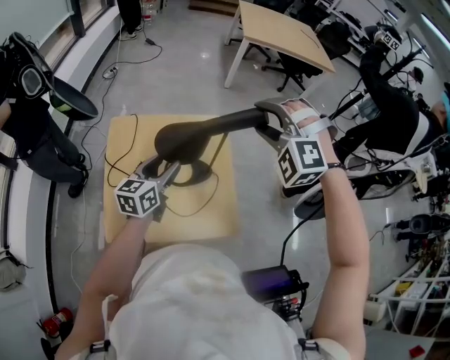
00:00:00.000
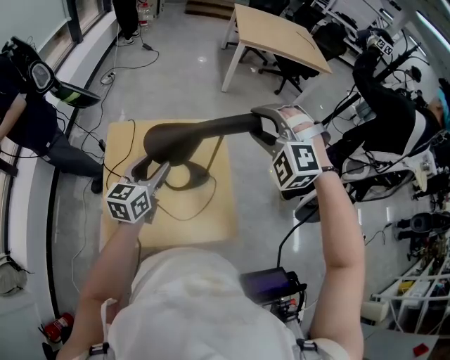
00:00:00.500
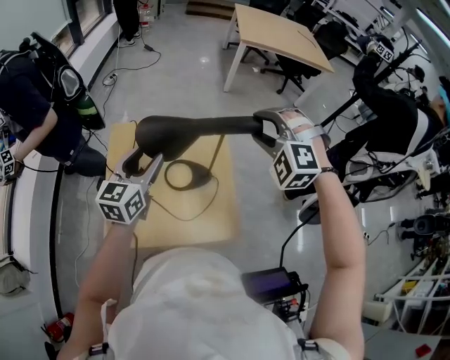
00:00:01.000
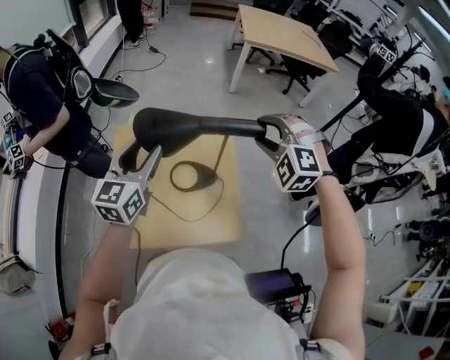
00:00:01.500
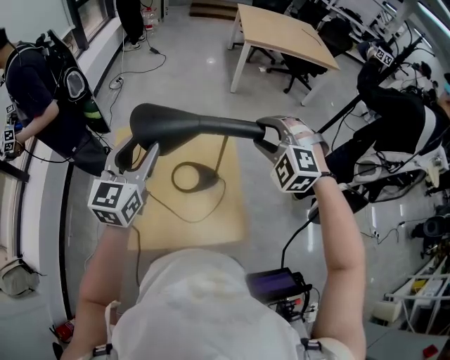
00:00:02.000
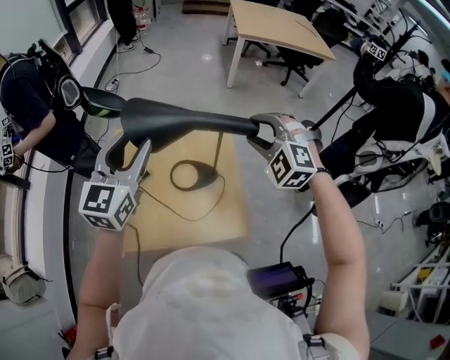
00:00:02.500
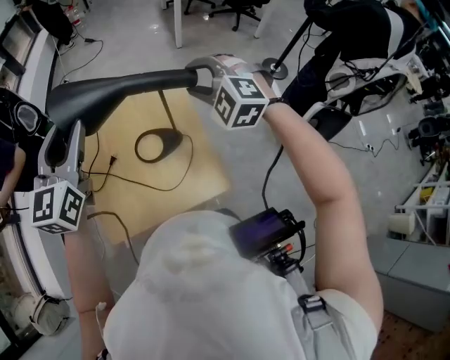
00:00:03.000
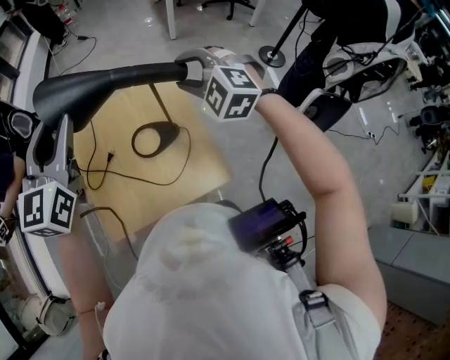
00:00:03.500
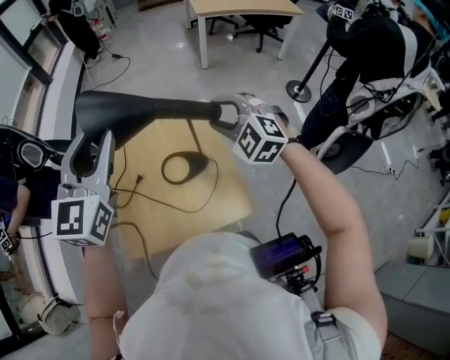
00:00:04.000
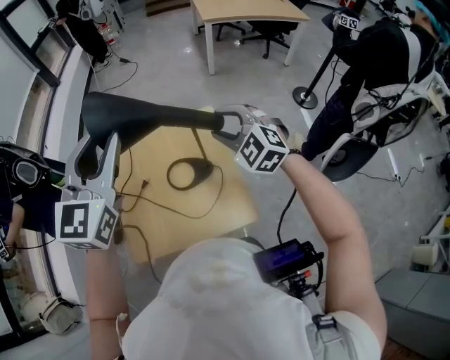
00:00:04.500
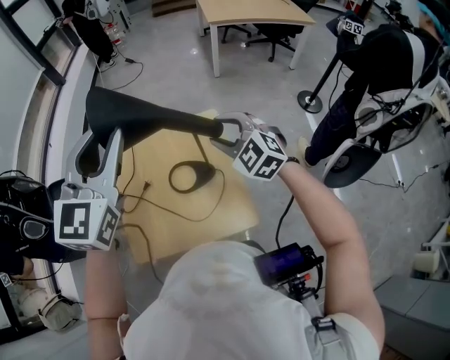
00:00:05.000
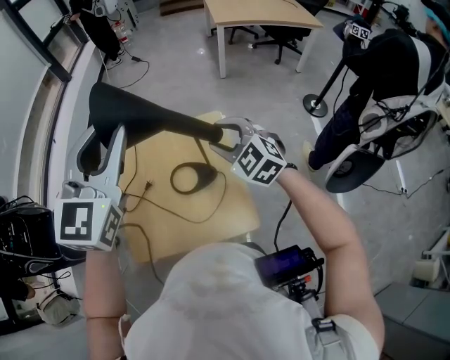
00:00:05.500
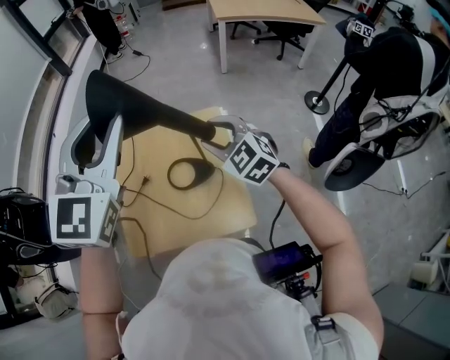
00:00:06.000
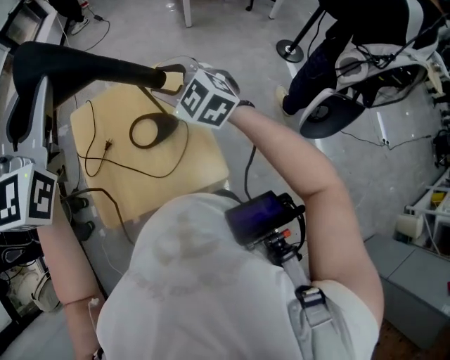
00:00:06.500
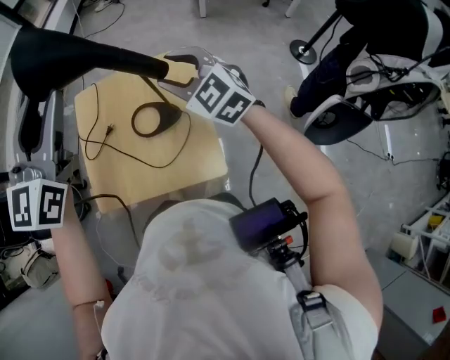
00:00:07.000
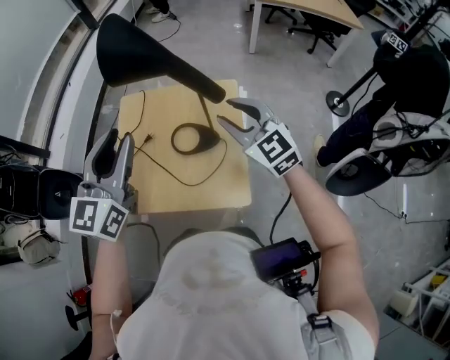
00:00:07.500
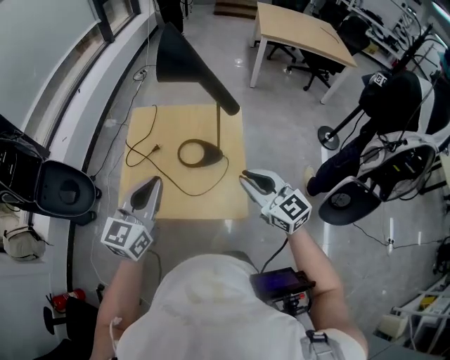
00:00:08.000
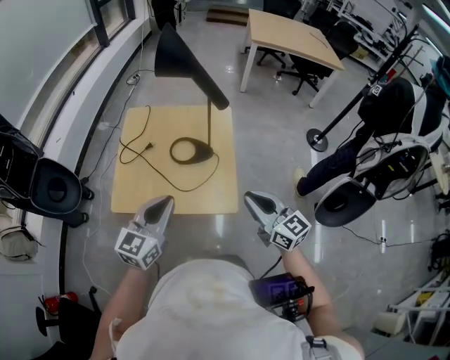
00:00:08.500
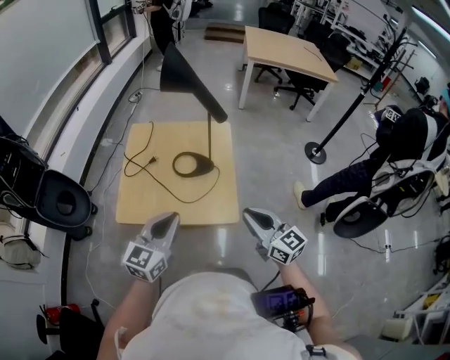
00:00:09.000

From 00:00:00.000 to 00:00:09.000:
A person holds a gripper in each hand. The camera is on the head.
From 00:00:00.000 to 00:00:02.000: The left gripper shifts some 15 cm upward, and swivels some 30 degrees; the right gripper travels downward by approximately 5 cm.
From 00:00:02.000 to 00:00:04.500: The right gripper turns by about 30 degrees. The left gripper travels upward and to the right by approximately 10 cm.
From 00:00:04.500 to 00:00:07.000: The right gripper changes its angle by about 20 degrees, while the left gripper shifts by some 5 cm.
From 00:00:07.000 to 00:00:09.000: The right gripper is displaced backward by some 30 cm, swivels about 40 degrees, and closes, while the left gripper is displaced backward and downward by approximately 35 cm, turns by roughly 20 degrees, and closes up.

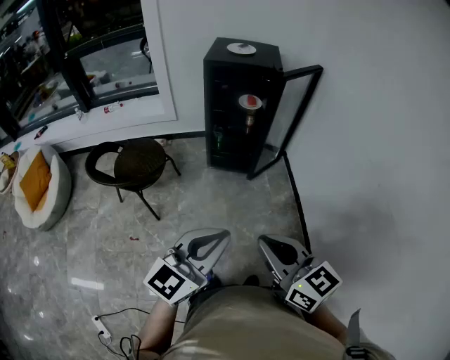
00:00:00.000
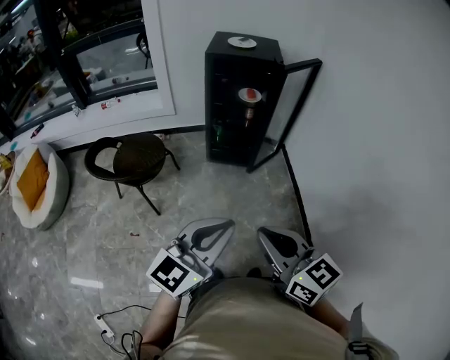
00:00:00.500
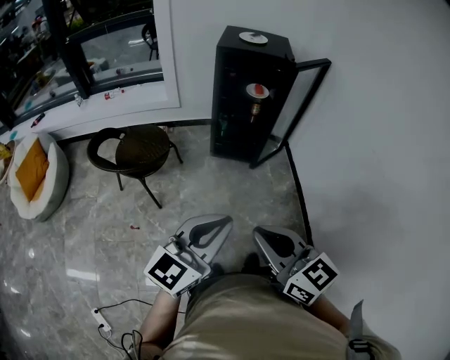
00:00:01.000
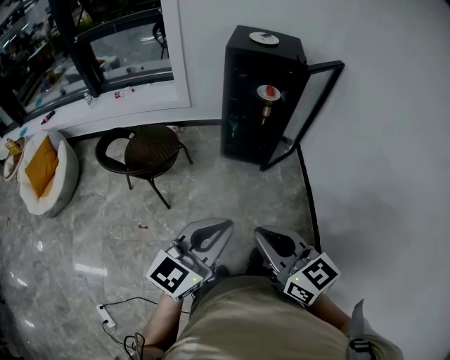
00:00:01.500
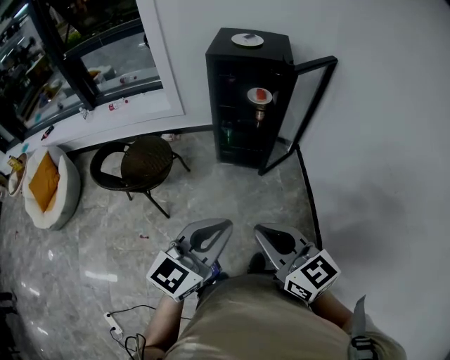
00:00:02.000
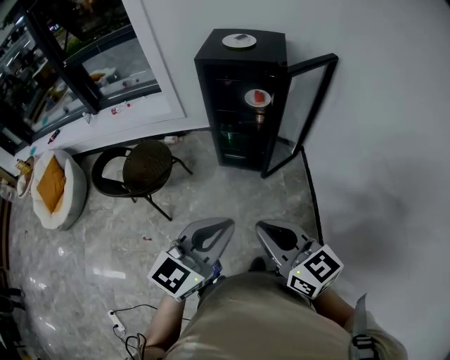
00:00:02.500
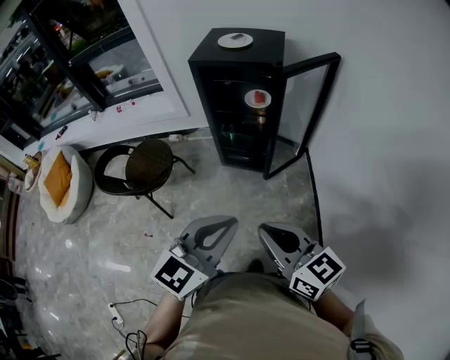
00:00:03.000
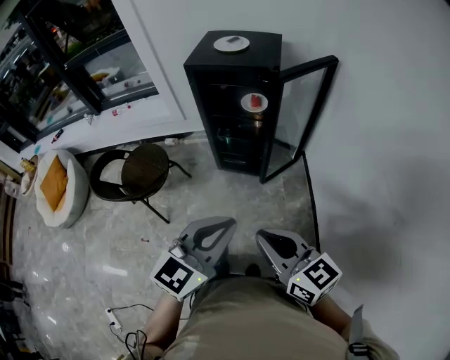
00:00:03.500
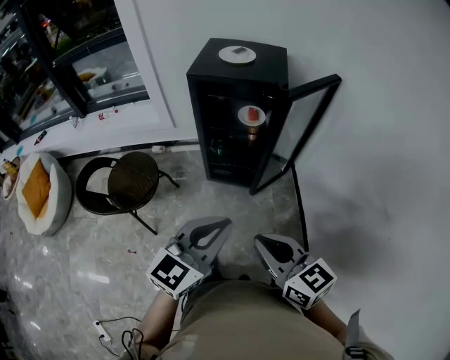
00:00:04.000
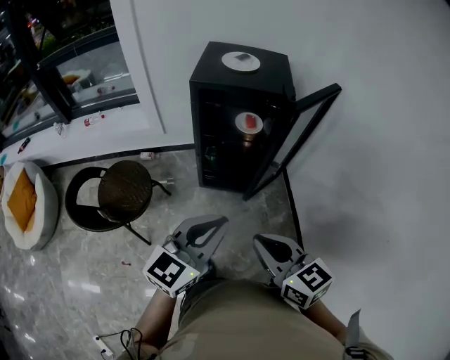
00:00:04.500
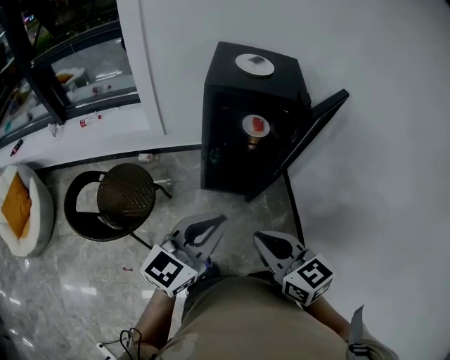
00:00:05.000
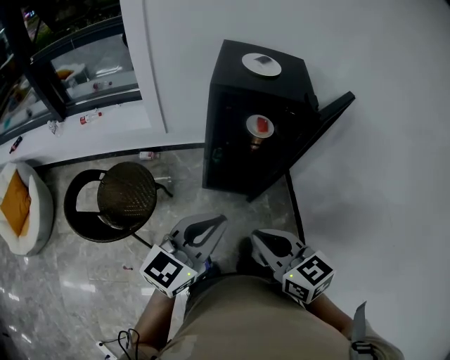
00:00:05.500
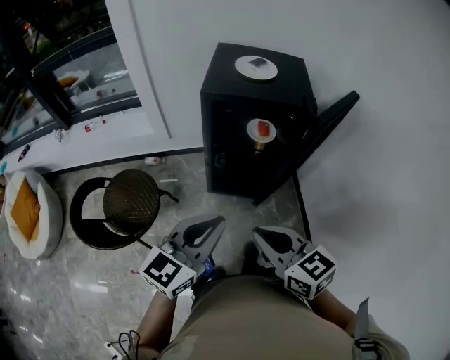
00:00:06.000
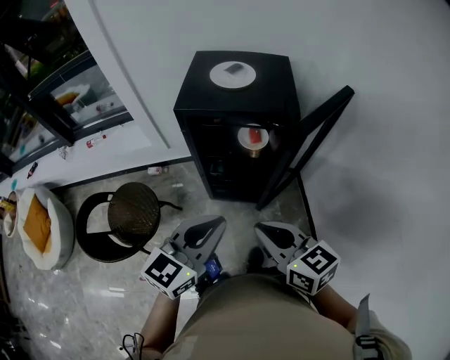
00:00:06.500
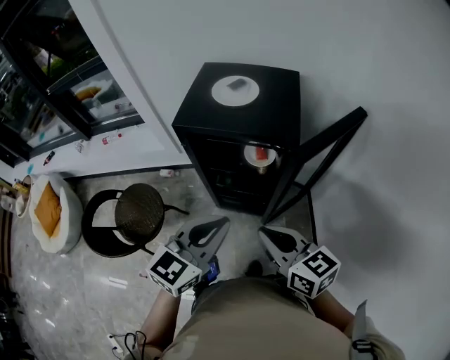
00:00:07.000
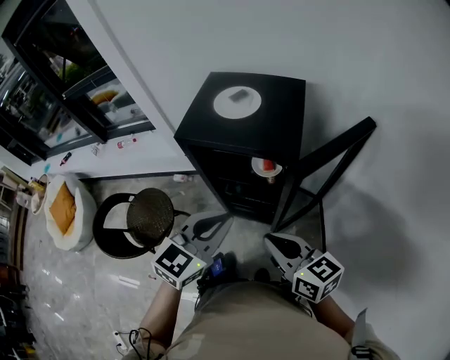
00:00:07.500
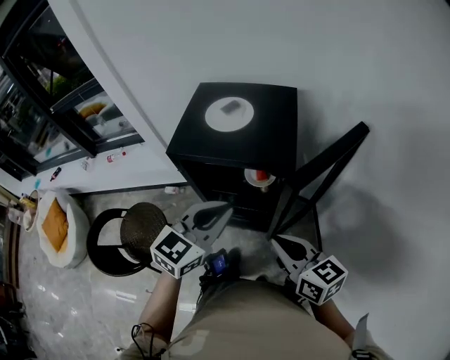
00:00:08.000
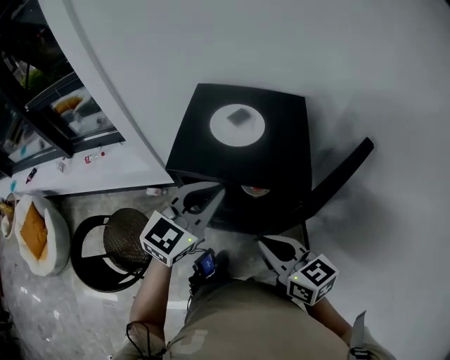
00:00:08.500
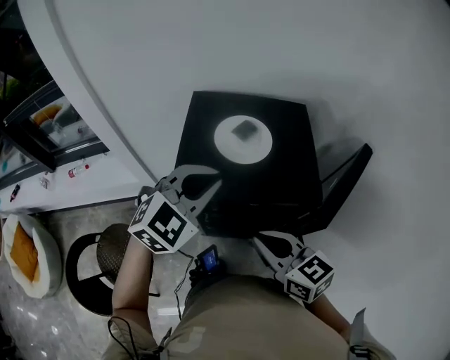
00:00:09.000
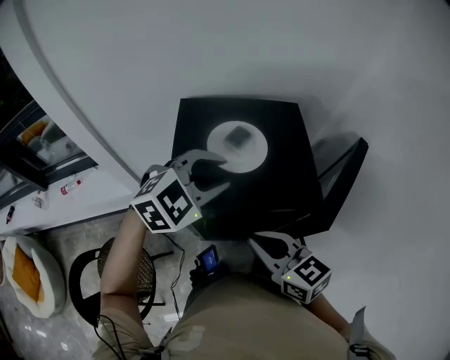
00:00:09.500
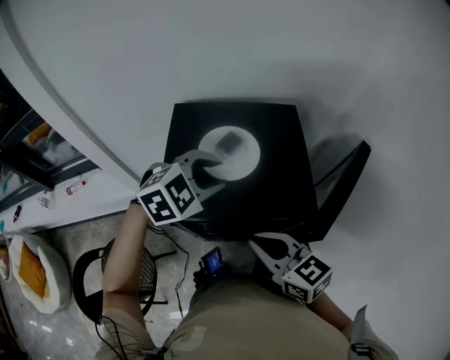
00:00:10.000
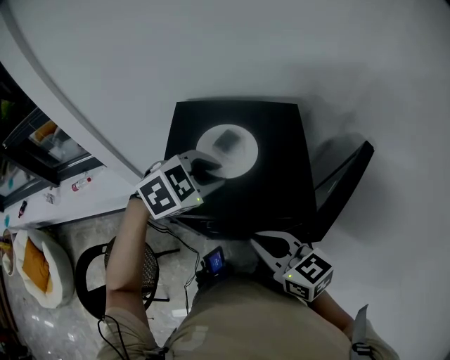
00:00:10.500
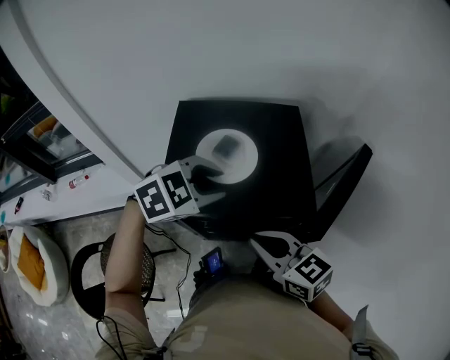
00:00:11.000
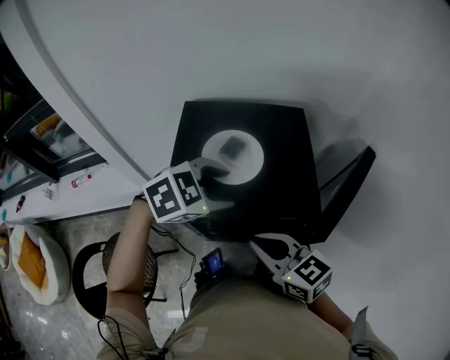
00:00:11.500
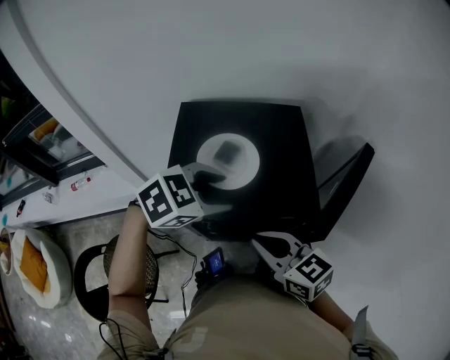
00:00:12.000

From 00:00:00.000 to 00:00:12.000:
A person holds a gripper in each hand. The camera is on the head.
From 00:00:00.000 to 00:00:02.000: Both grippers travel together forward, approximately 10 cm.
From 00:00:02.000 to 00:00:04.000: Both grippers travel together forward and to the right, approximately 15 cm.
From 00:00:04.000 to 00:00:06.000: The two grippers go roughly 20 cm forward and to the left.
From 00:00:06.000 to 00:00:08.000: The right gripper is displaced to the right and forward by about 25 cm, while the left gripper moves forward and to the right, approximately 25 cm.
From 00:00:08.000 to 00:00:10.000: The right gripper travels forward and to the left by approximately 20 cm; the left gripper moves forward, approximately 20 cm, turns by some 50 degrees, and opens its fingers.
From 00:00:10.000 to 00:00:12.000: The left gripper turns by about 20 degrees, and opens its fingers.

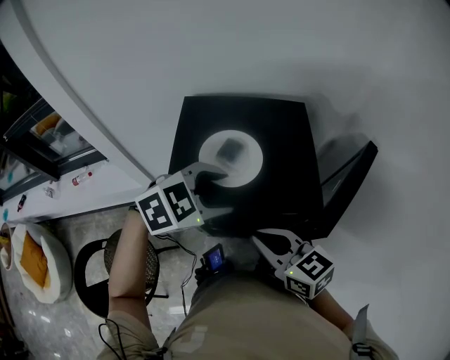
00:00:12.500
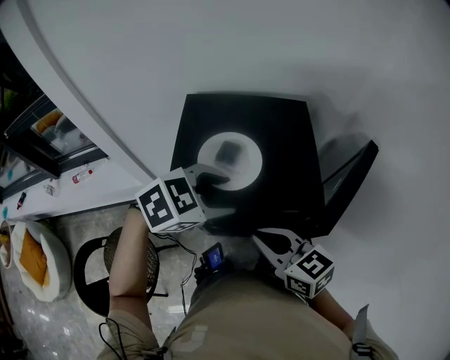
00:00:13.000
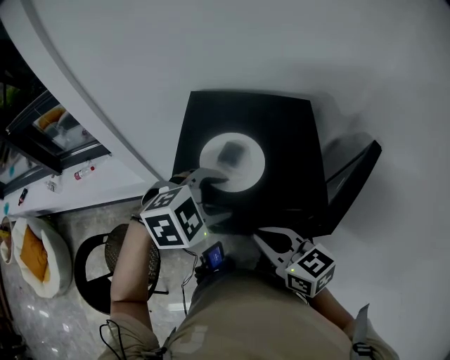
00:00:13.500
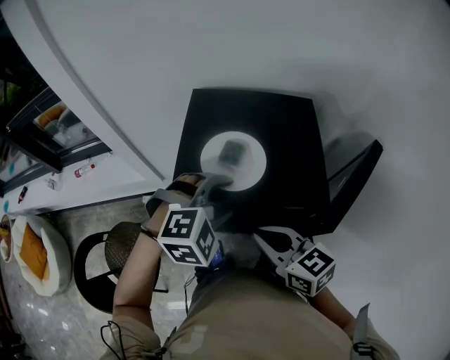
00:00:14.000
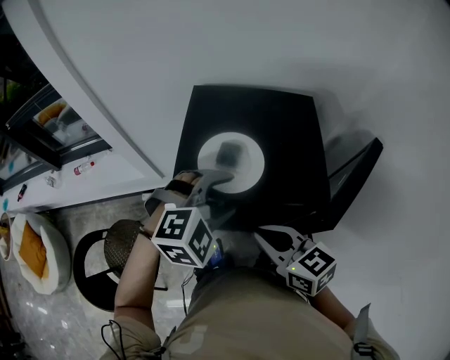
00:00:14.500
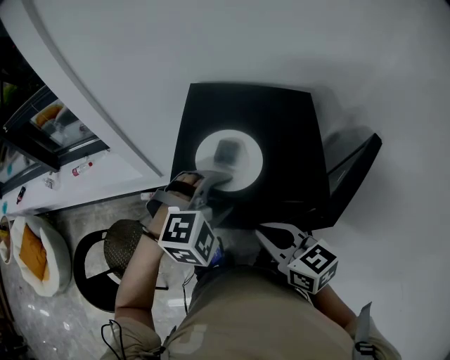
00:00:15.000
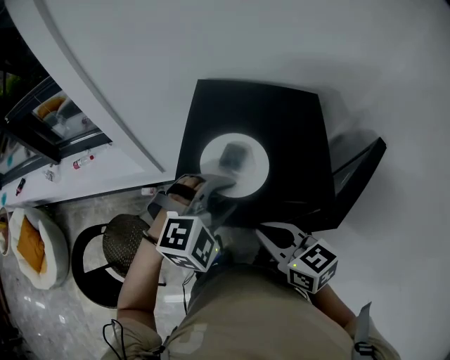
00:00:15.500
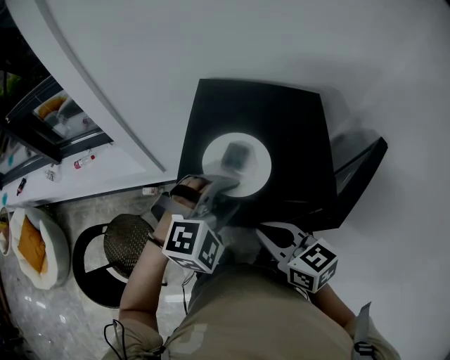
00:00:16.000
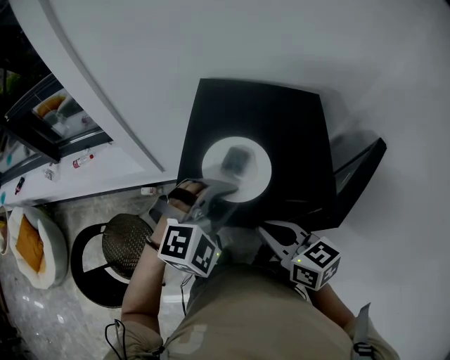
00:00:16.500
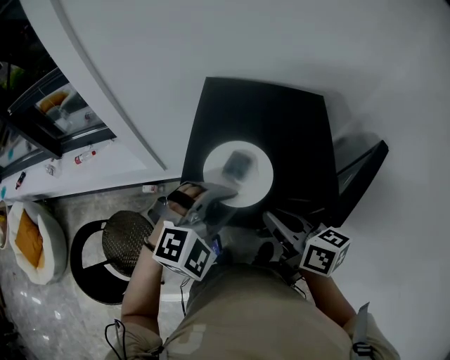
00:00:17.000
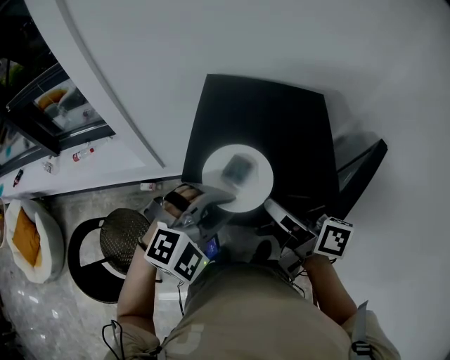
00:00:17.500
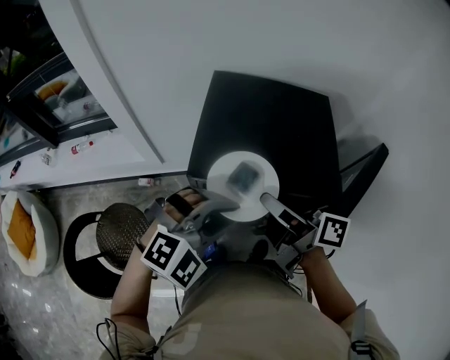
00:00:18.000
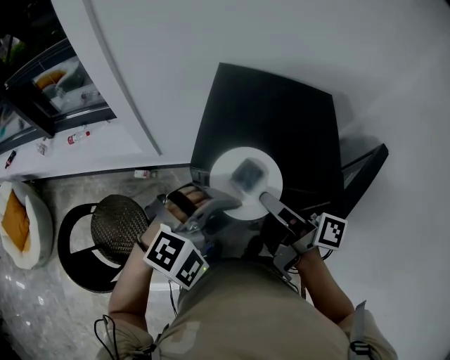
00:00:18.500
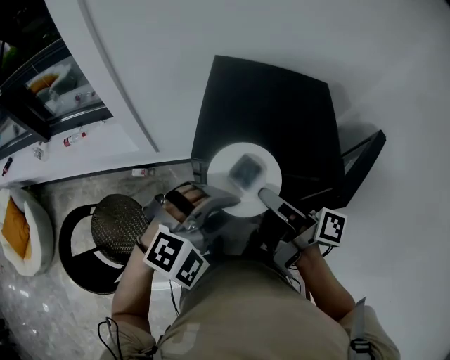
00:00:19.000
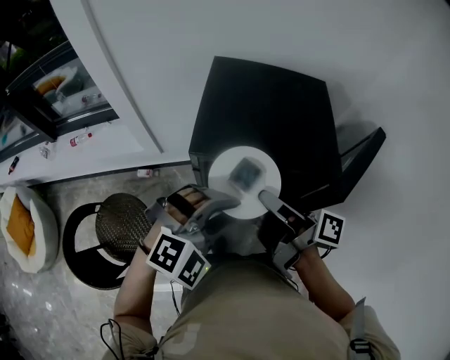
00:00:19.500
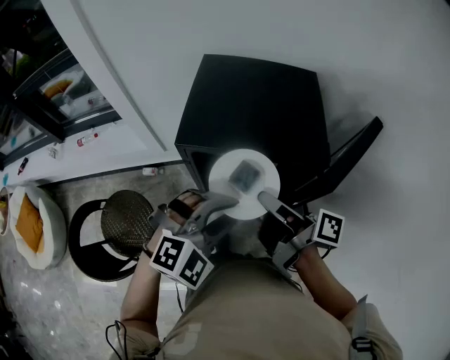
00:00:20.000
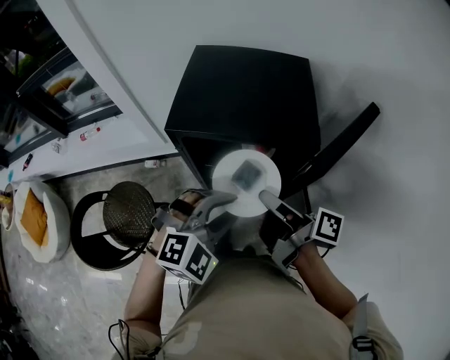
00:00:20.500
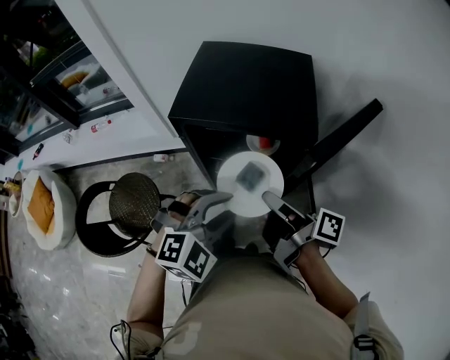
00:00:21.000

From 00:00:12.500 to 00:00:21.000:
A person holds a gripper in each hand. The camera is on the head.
From 00:00:12.500 to 00:00:14.500: The left gripper swivels about 30 degrees.
From 00:00:14.500 to 00:00:16.500: The left gripper closes.
From 00:00:16.500 to 00:00:19.000: The left gripper moves backward, roughly 10 cm, while the right gripper rotates around the line of its fingers by approximately 60 degrees, clockwise from behind.
From 00:00:19.000 to 00:00:21.000: Both grippers move to the right and backward, about 15 cm. The left gripper swivels some 20 degrees.
